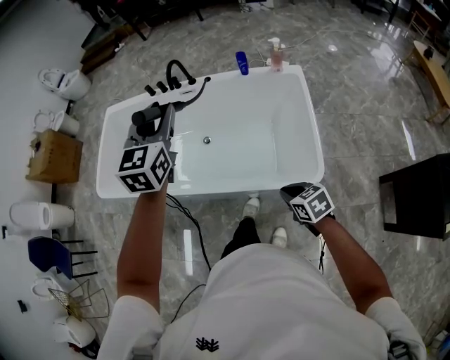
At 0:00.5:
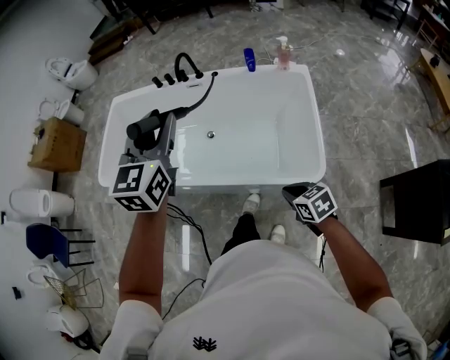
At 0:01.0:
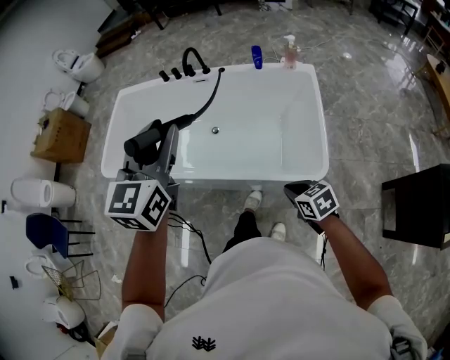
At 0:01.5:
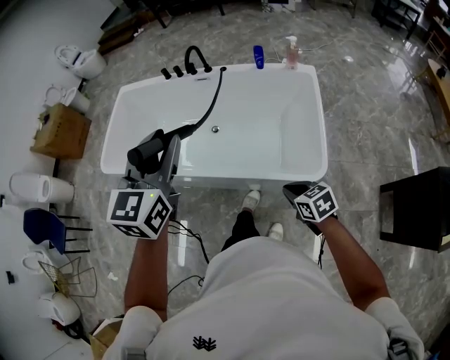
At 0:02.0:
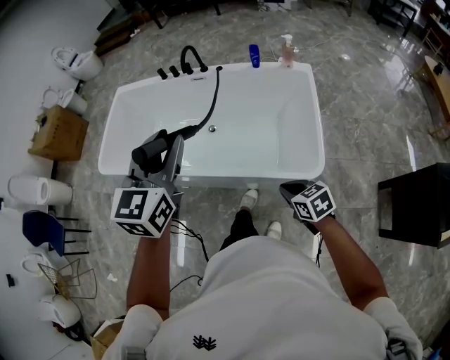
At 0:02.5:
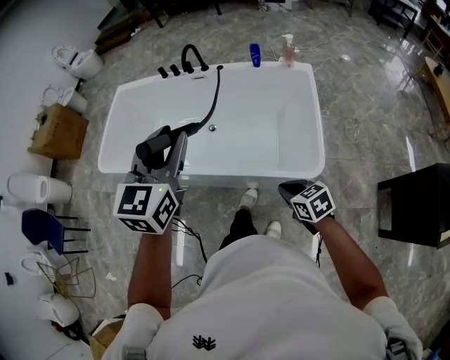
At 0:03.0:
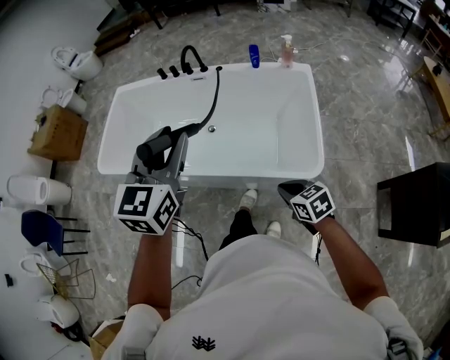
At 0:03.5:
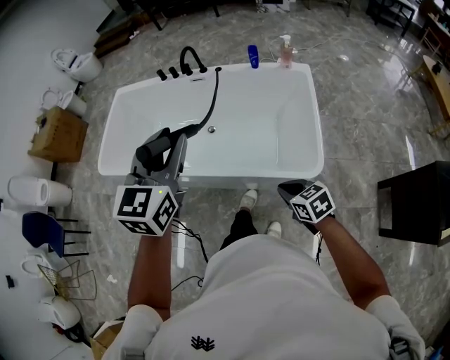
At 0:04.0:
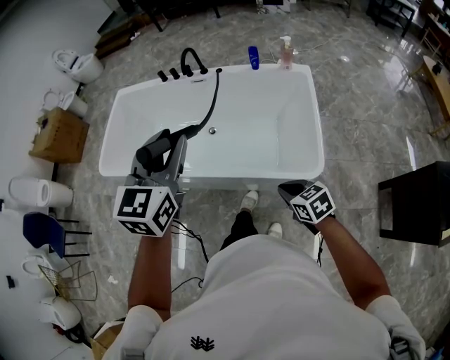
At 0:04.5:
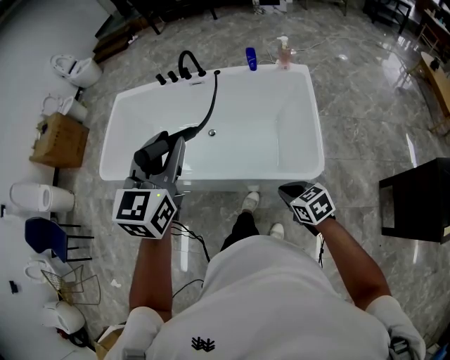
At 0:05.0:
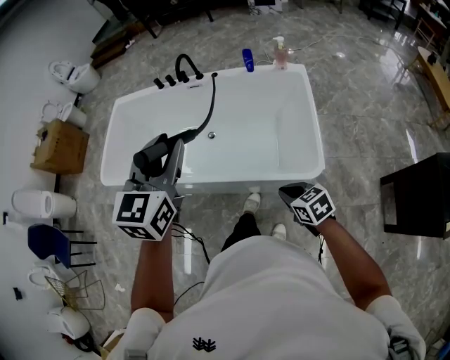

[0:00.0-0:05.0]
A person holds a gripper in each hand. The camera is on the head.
0:00.0 to 0:02.5: The right gripper shifts by approximately 5 cm, while the left gripper shifts approximately 15 cm backward.
0:02.5 to 0:05.0: Both grippers stay put.

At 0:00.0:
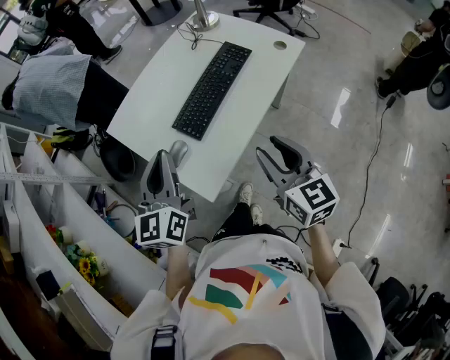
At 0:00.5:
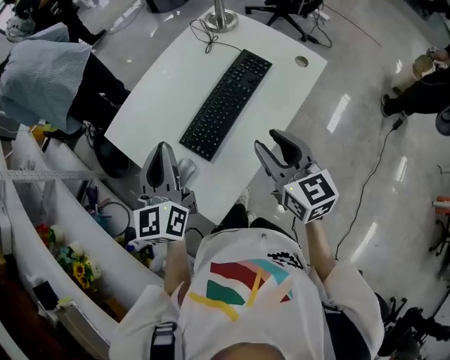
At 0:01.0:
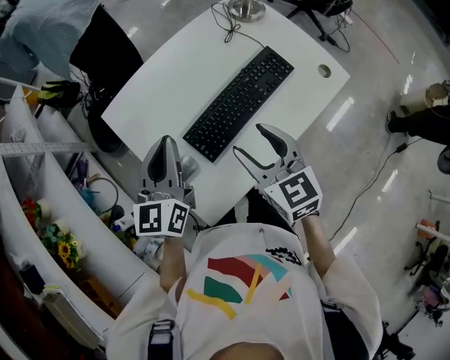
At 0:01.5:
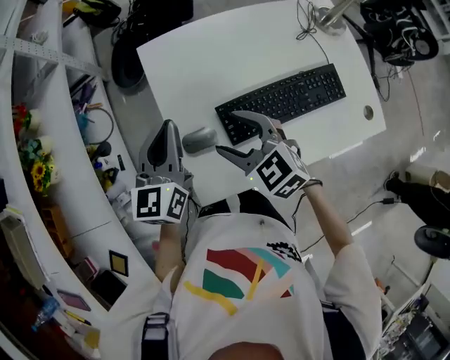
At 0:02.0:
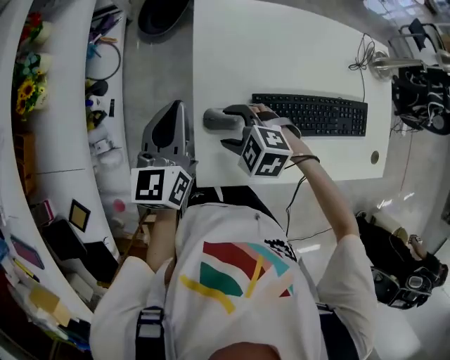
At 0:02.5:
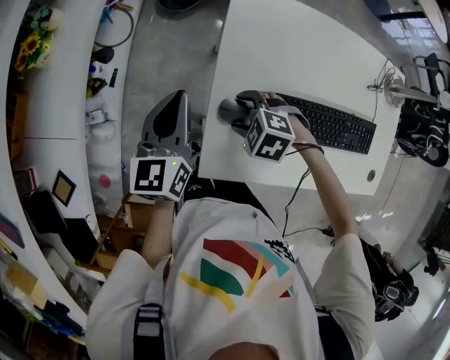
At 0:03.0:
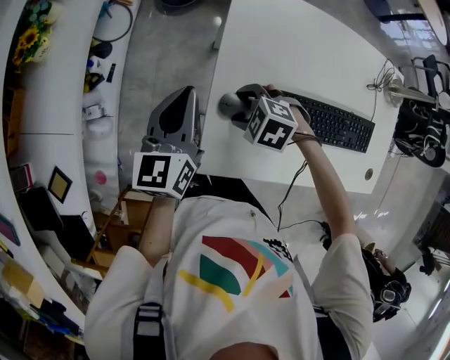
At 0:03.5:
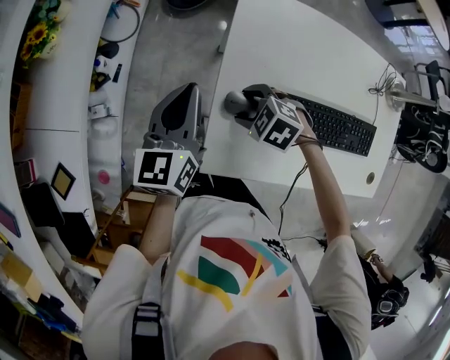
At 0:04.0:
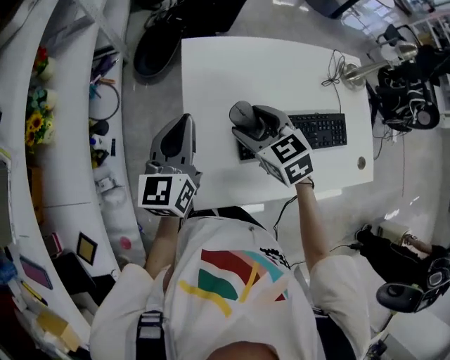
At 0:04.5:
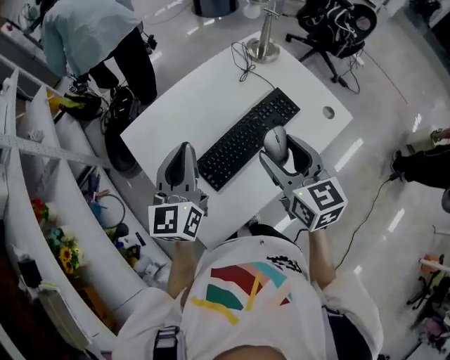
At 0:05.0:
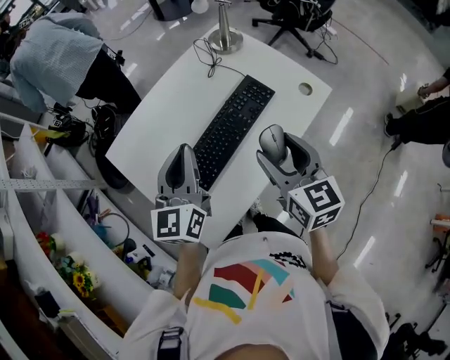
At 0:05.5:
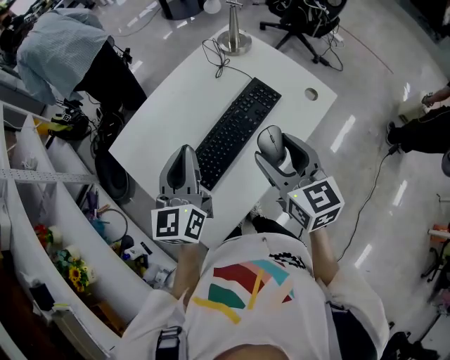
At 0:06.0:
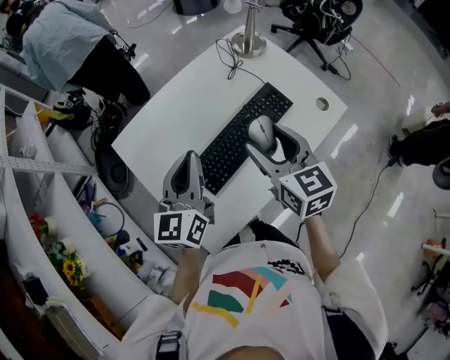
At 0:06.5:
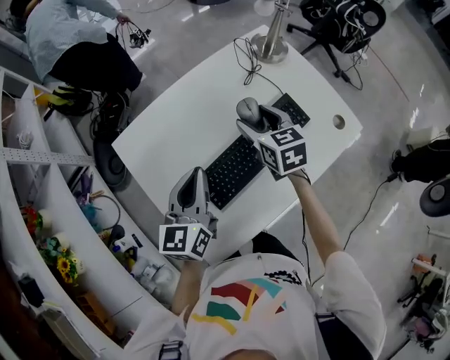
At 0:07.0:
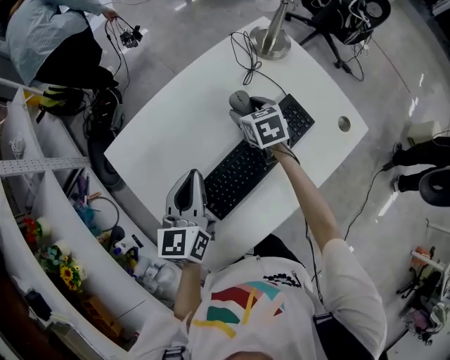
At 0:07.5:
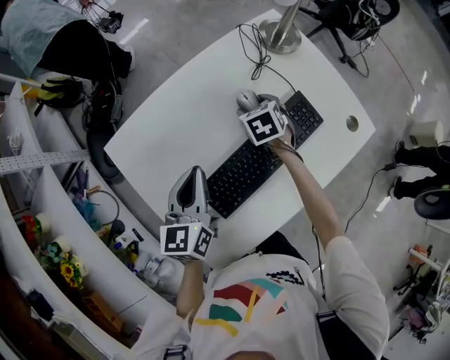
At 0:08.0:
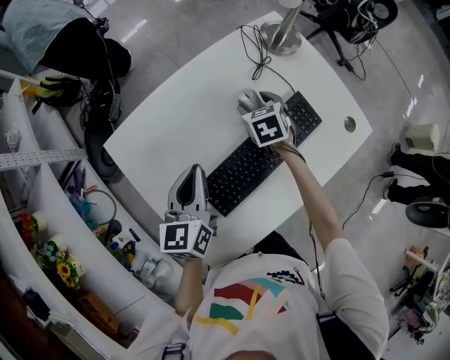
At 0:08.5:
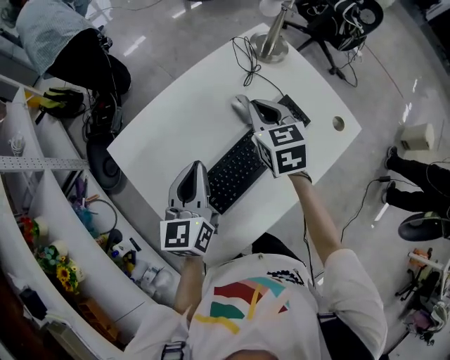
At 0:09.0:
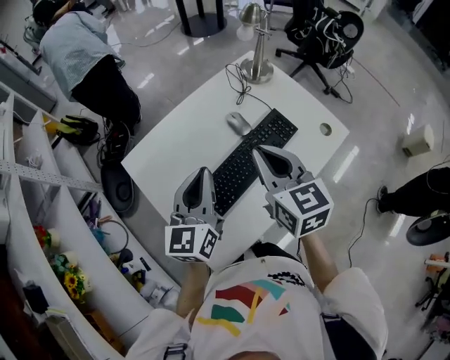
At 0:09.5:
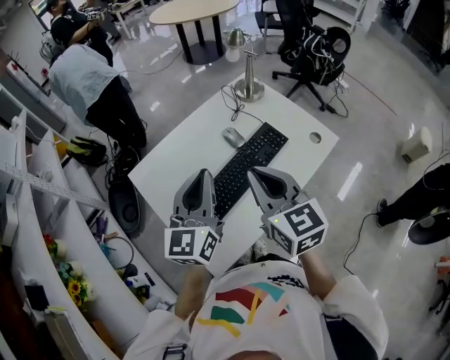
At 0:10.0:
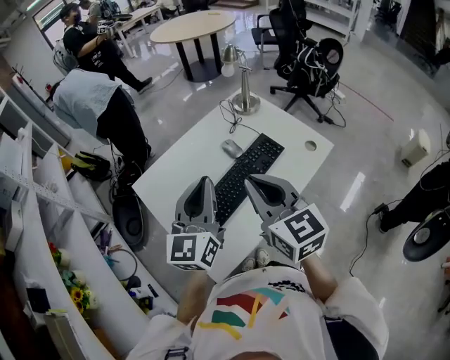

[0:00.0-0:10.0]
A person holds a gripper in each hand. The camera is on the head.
0:00.0 to 0:02.0: The left gripper ends up approximately 20 cm from where it was, and changes its angle by approximately 50 degrees. Meanwhile the right gripper ends up approximately 35 cm from where it was, tilts its fingers approximately 50 degrees downward, and opens its fingers.
0:02.0 to 0:04.0: The left gripper moves approximately 5 cm; the right gripper is displaced upward by some 10 cm, and turns by approximately 50 degrees.
0:04.0 to 0:06.0: The left gripper ends up some 25 cm from where it was, and rotates about 30 degrees; the right gripper shifts by roughly 30 cm, and swivels some 50 degrees.
0:06.0 to 0:08.0: The left gripper goes roughly 15 cm downward and forward, while the right gripper heads forward and downward, covering some 35 cm, and points its fingers some 30 degrees further downward.
0:08.0 to 0:10.0: The left gripper travels upward and backward by some 25 cm, and swivels about 30 degrees; the right gripper shifts about 50 cm backward and upward, angles its fingers upward, by approximately 40 degrees, and closes its fingers.

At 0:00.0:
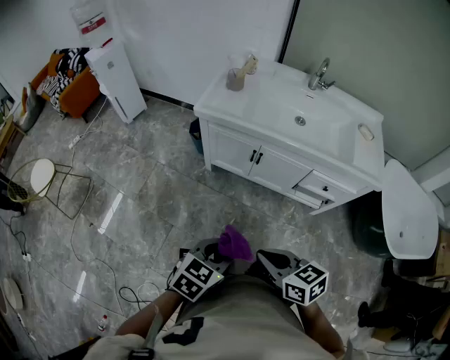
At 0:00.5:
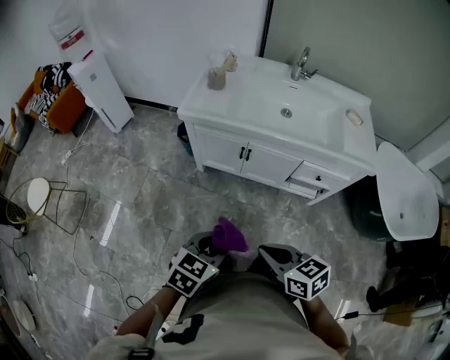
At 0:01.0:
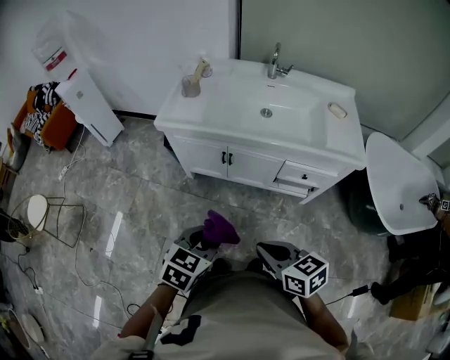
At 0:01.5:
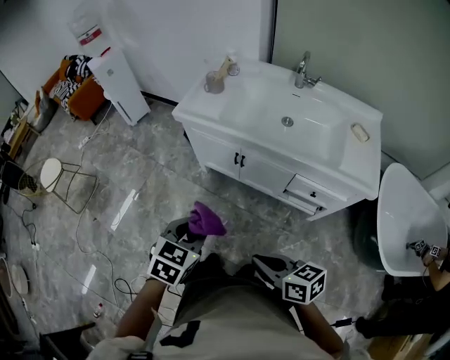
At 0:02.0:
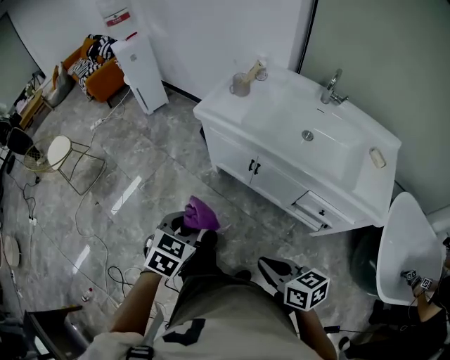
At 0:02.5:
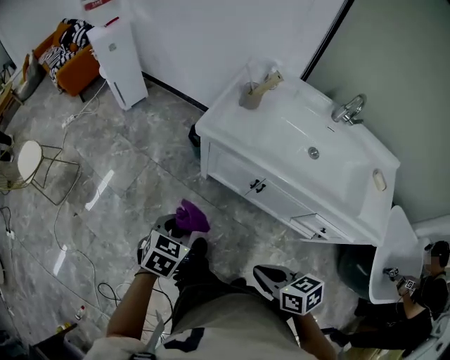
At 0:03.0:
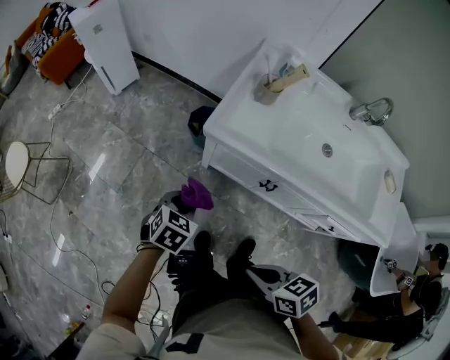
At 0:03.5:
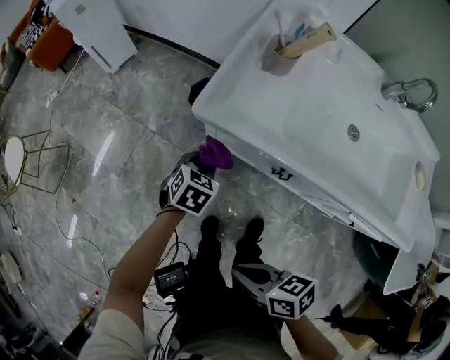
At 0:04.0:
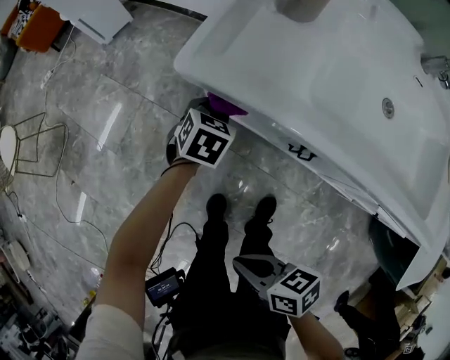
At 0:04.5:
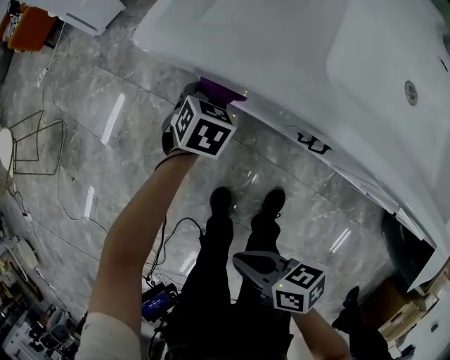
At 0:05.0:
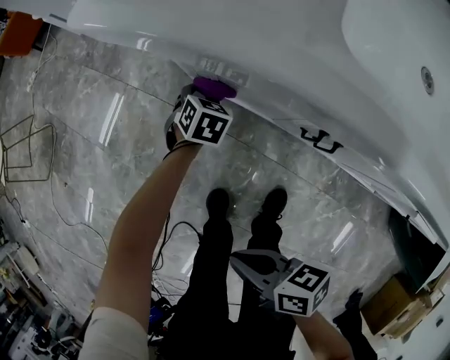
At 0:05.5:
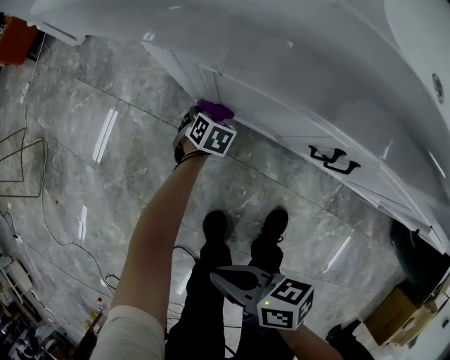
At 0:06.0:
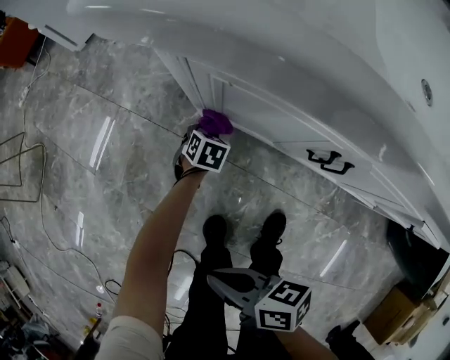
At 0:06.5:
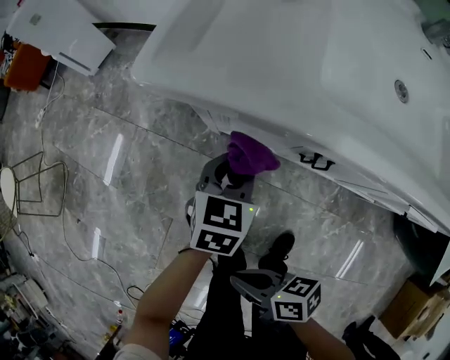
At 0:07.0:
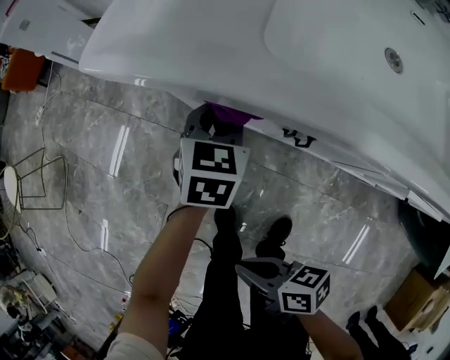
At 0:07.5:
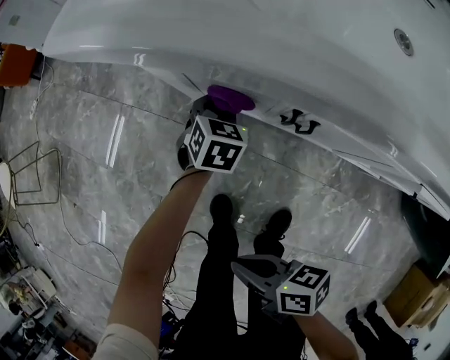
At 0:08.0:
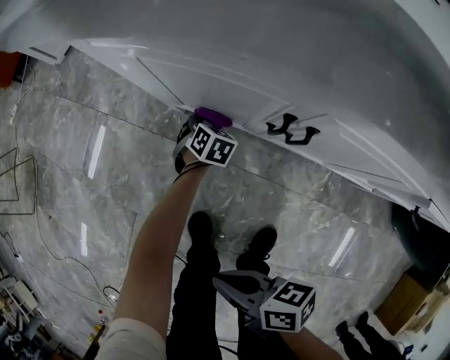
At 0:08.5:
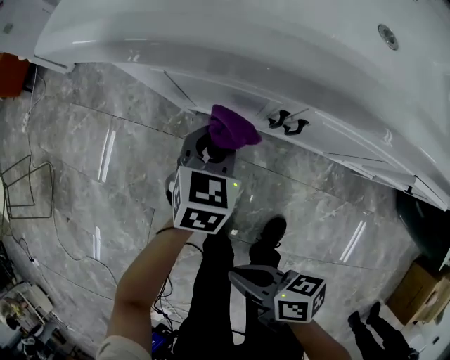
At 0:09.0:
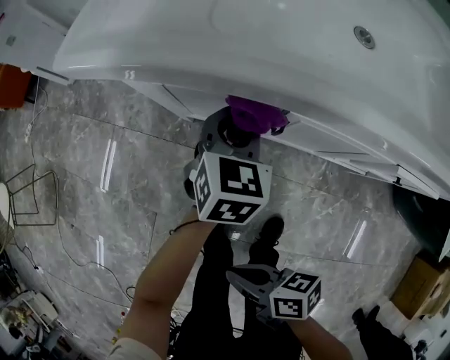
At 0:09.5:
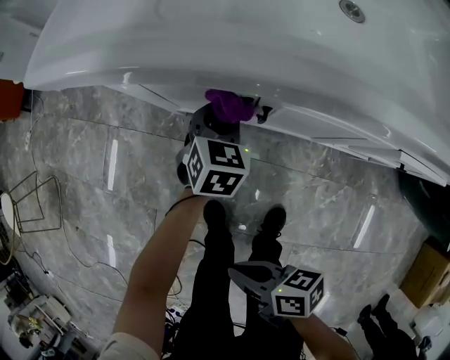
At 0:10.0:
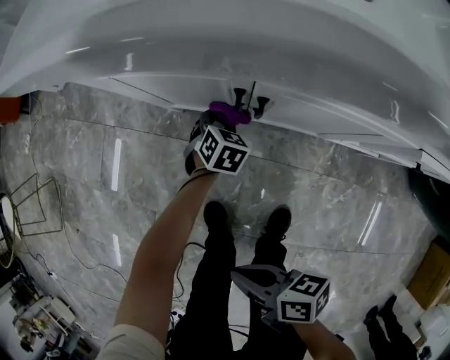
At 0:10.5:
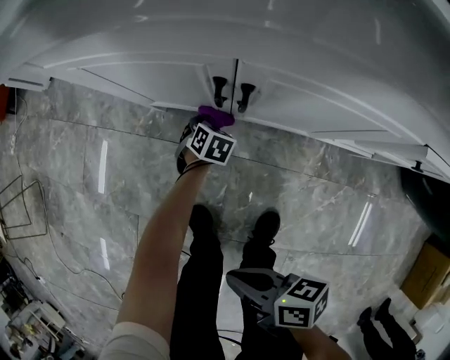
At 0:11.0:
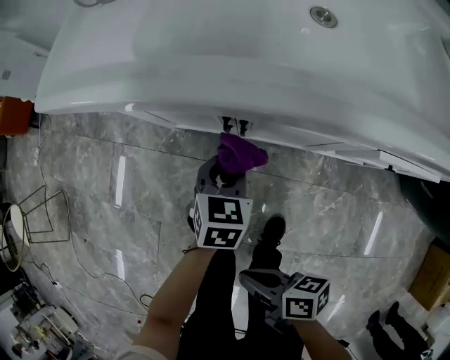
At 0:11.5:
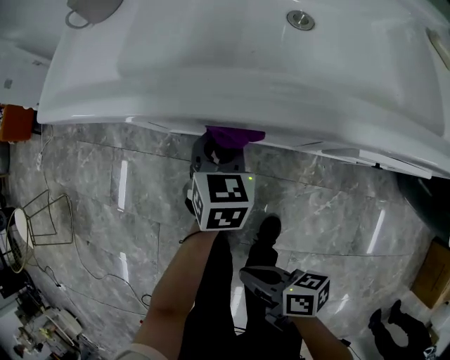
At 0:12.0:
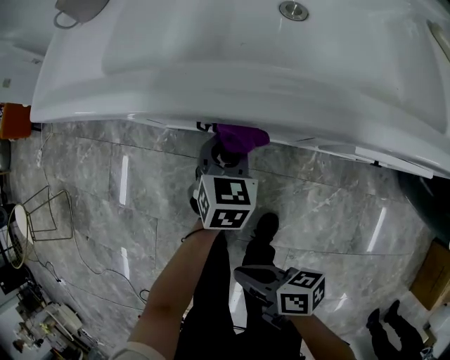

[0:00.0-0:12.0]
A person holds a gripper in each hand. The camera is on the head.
0:00.0 to 0:02.0: The left gripper ends up roughly 10 cm from where it was, and rotates roughly 30 degrees.
0:02.0 to 0:04.0: The left gripper moves some 60 cm.
0:04.0 to 0:06.0: The left gripper heads downward, covering some 30 cm.
0:06.0 to 0:08.0: The left gripper goes upward and returns, some 30 cm each way.
0:08.0 to 0:10.0: The left gripper reaches some 35 cm upward, then returns.
0:10.0 to 0:12.0: The left gripper moves up and down over about 35 cm, changing direction 2 times.
